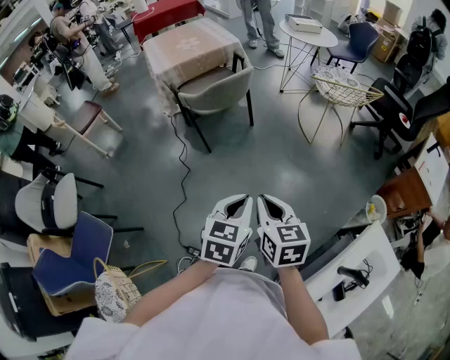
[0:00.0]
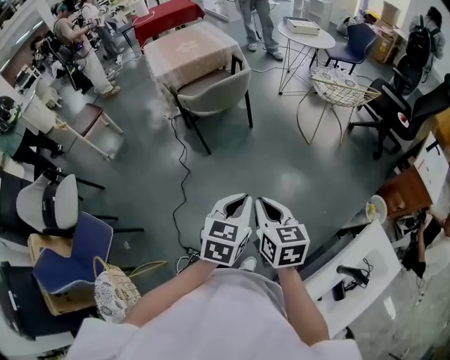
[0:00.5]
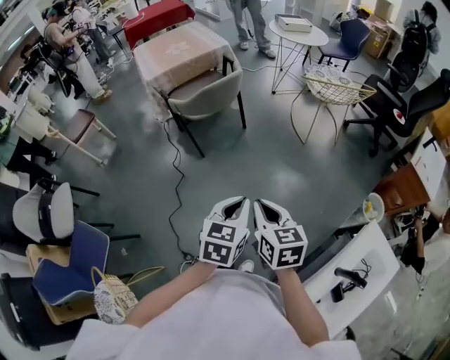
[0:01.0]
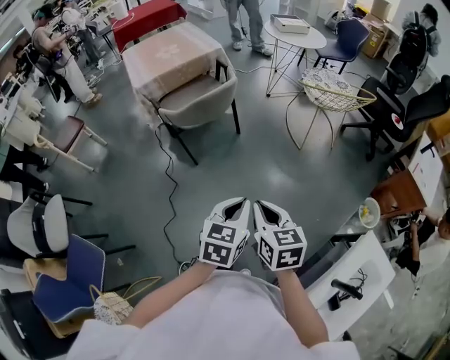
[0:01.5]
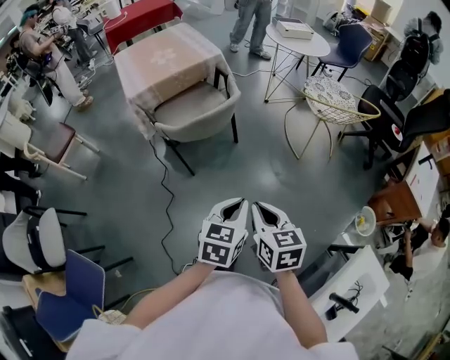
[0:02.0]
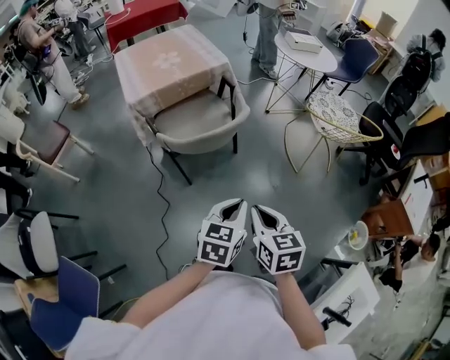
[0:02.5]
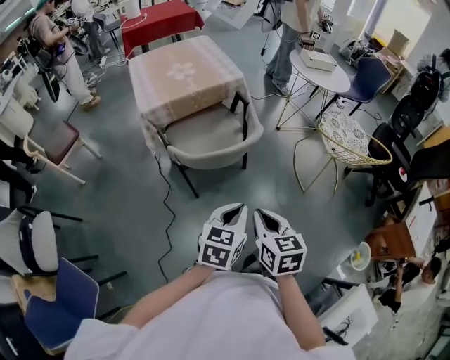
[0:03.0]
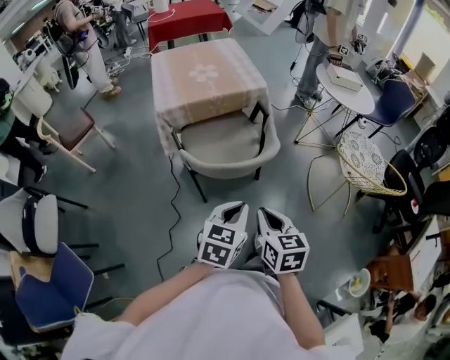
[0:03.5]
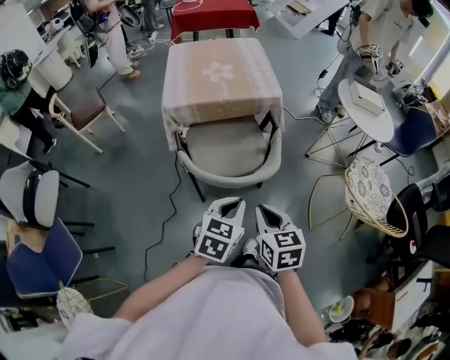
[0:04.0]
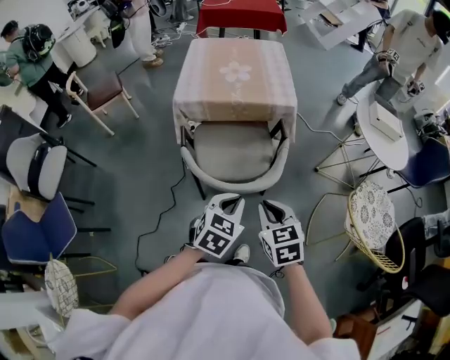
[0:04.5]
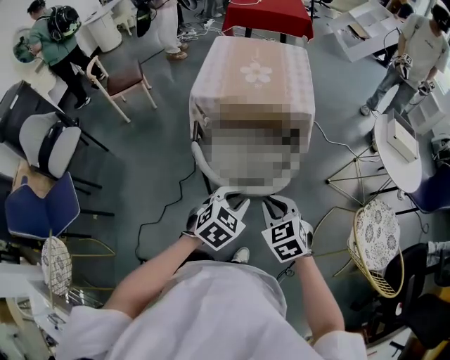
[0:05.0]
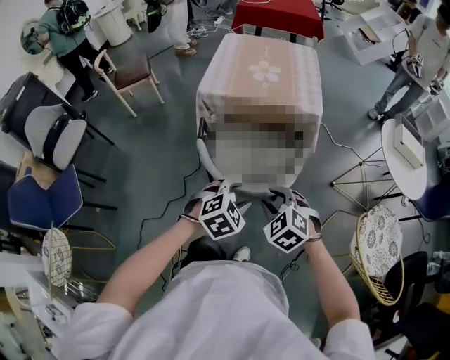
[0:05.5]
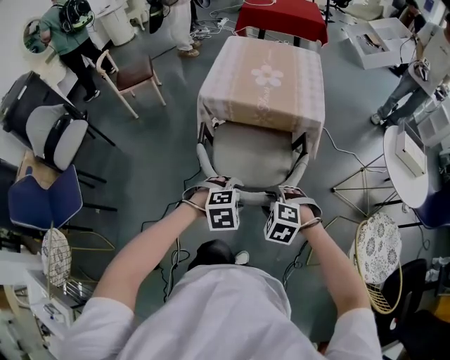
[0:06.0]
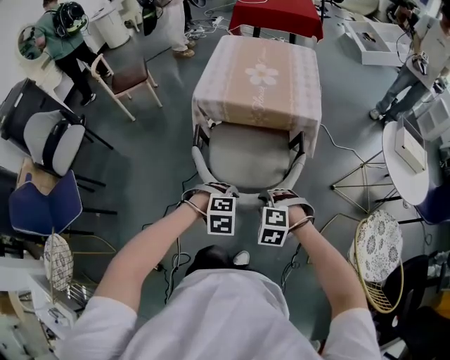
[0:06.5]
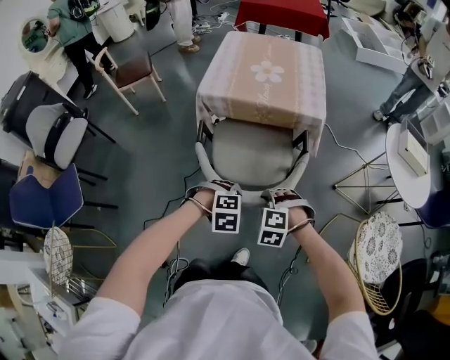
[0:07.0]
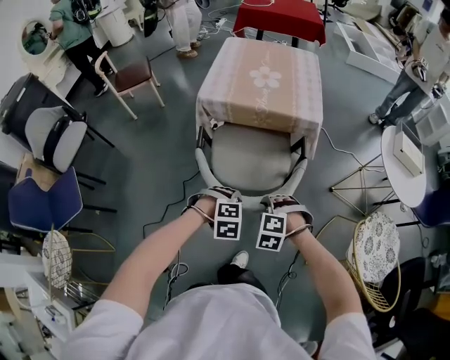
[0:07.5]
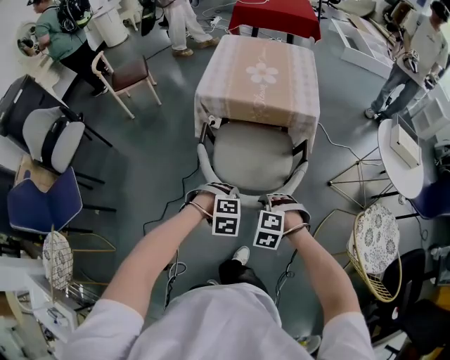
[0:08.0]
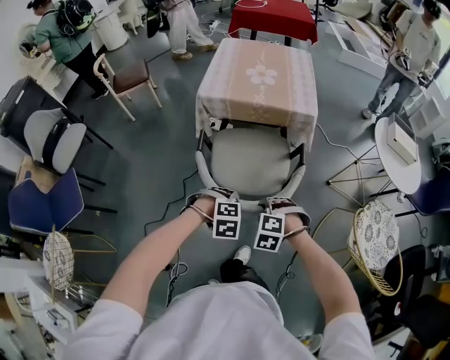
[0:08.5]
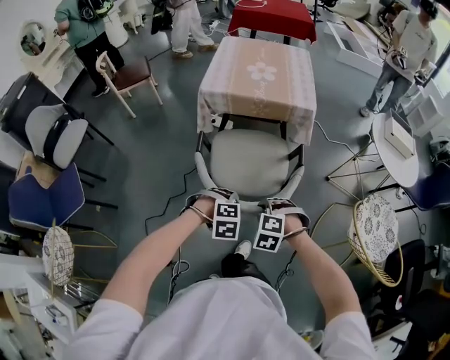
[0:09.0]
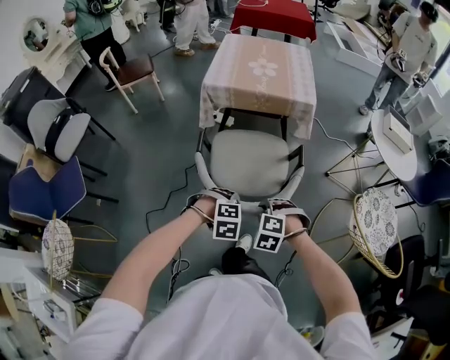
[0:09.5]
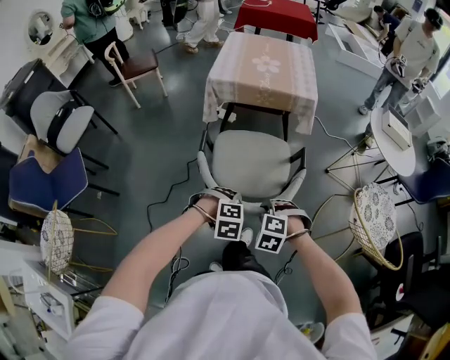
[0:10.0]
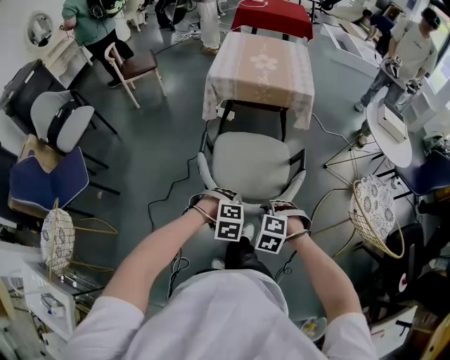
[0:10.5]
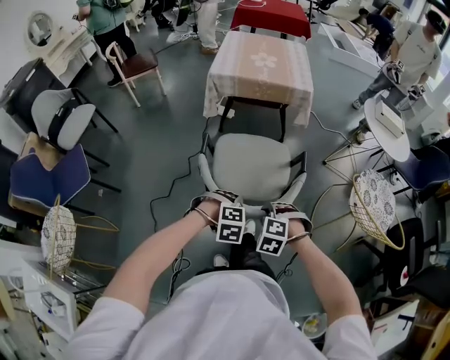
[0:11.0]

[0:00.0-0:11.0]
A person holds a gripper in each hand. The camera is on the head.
0:00.0 to 0:02.0: Both grippers travel together forward, about 20 cm.
0:02.0 to 0:03.5: The right gripper travels forward by roughly 20 cm. Meanwhile the left gripper travels forward and to the left by some 20 cm.
0:03.5 to 0:05.5: The left gripper shifts by some 15 cm, changes its angle by approximately 30 degrees, and opens up; the right gripper shifts by roughly 20 cm, twists roughly 70 degrees counterclockwise, seen from behind, and opens up.
0:05.5 to 0:07.5: The grippers both shift downward by about 10 cm. The right gripper turns by approximately 30 degrees. The left gripper changes its angle by about 30 degrees, and closes.
0:07.5 to 0:09.0: Both grippers move backward, approximately 10 cm.
0:09.0 to 0:11.0: Both grippers travel together backward, approximately 20 cm.

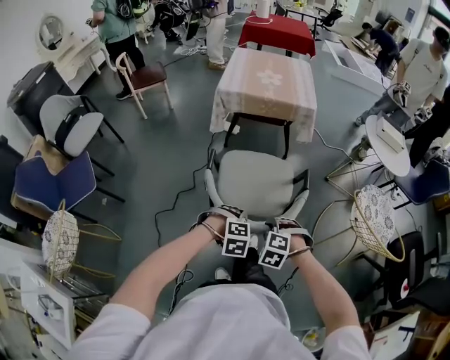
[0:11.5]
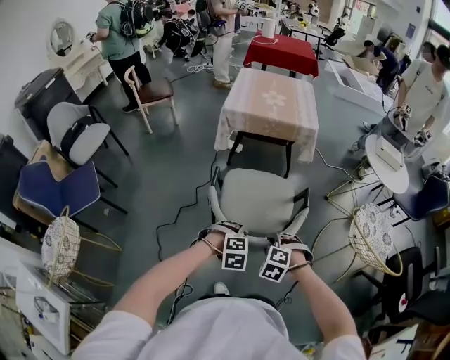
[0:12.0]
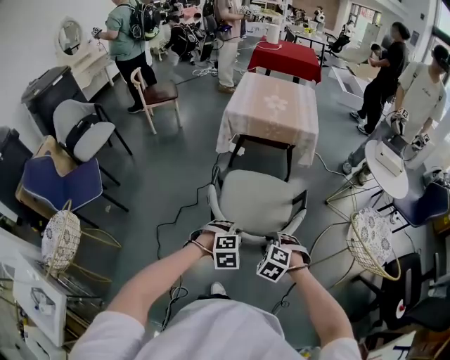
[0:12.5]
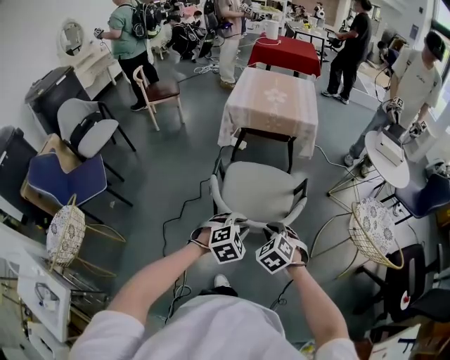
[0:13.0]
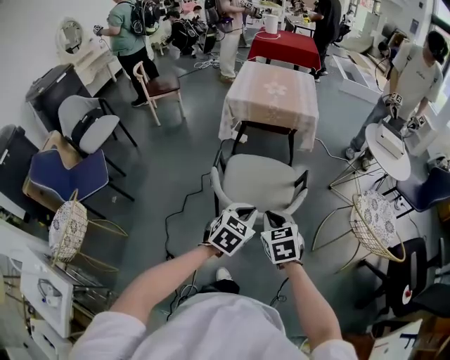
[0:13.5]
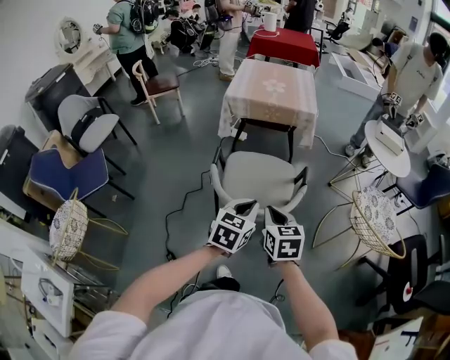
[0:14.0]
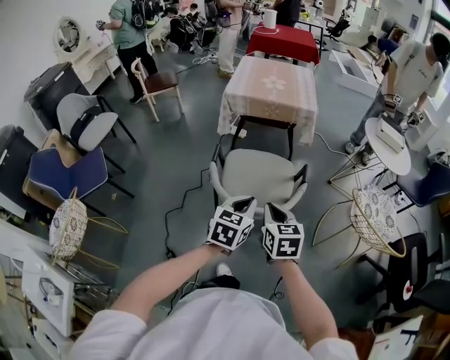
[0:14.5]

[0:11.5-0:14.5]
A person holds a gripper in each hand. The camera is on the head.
0:11.5 to 0:13.0: Both grippers travel together upward, about 10 cm. The right gripper rotates roughly 30 degrees. The left gripper changes its angle by approximately 30 degrees.
0:13.0 to 0:14.5: The two grippers go some 5 cm upward. The right gripper rolls clockwise, seen from behind, by some 50 degrees; the left gripper rotates around the line of its fingers by about 40 degrees, counterclockwise from behind, and closes up.

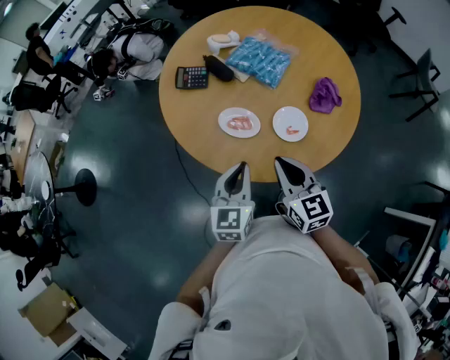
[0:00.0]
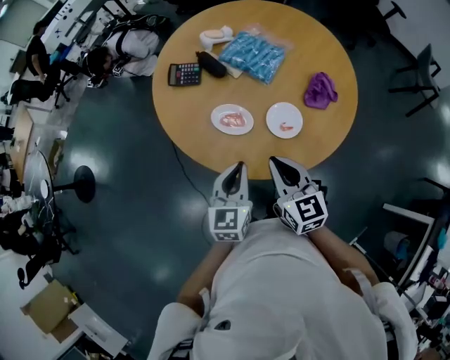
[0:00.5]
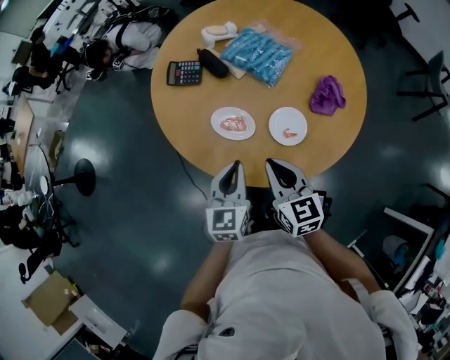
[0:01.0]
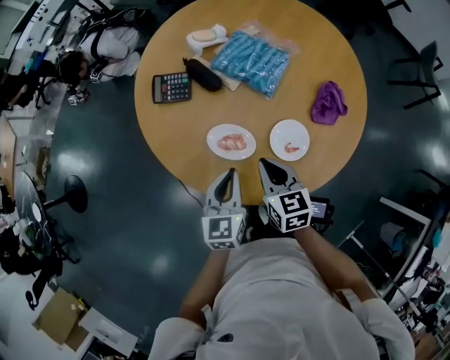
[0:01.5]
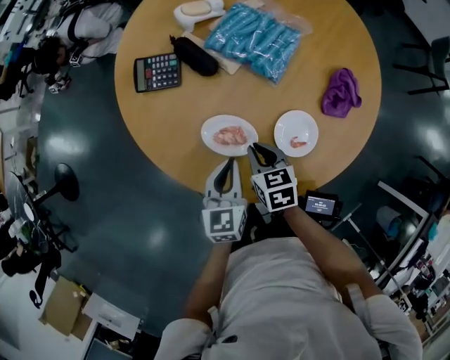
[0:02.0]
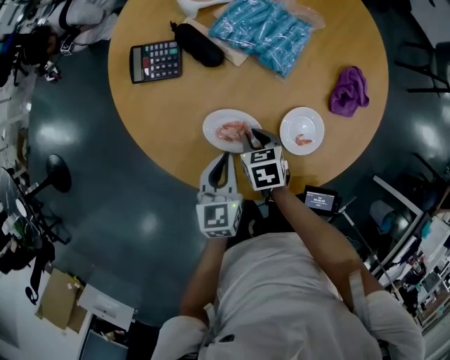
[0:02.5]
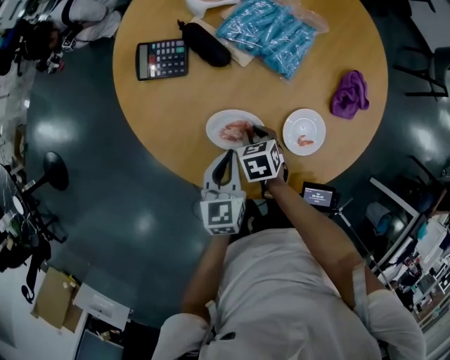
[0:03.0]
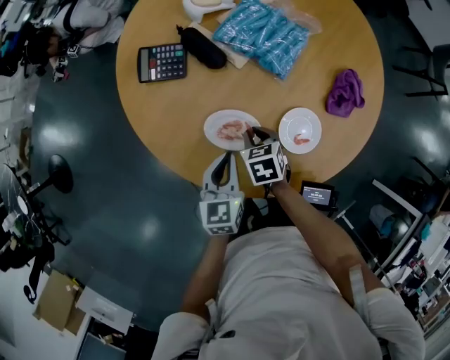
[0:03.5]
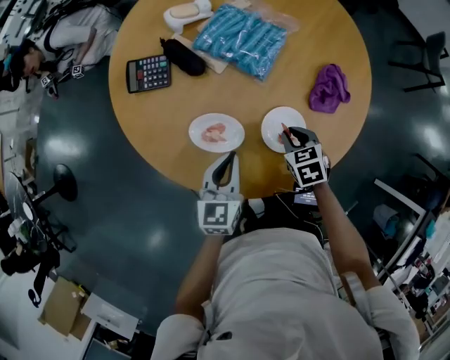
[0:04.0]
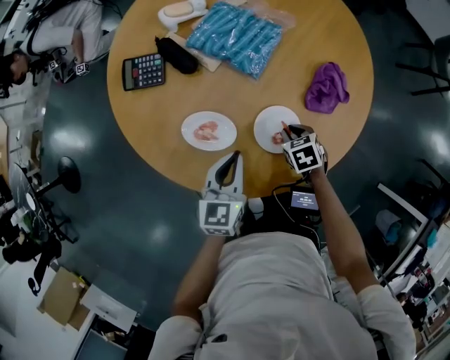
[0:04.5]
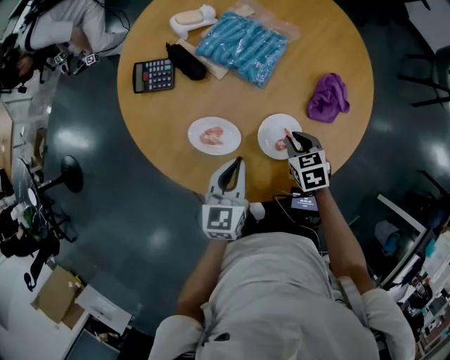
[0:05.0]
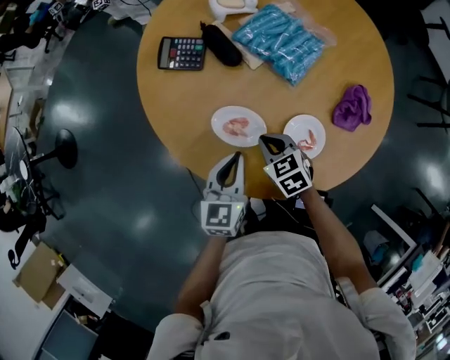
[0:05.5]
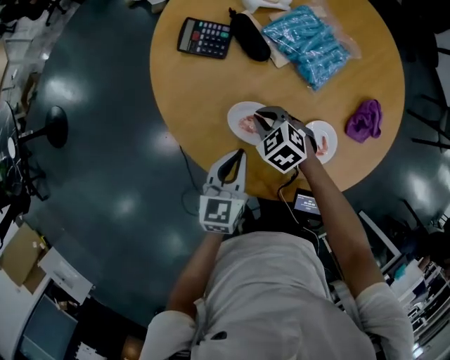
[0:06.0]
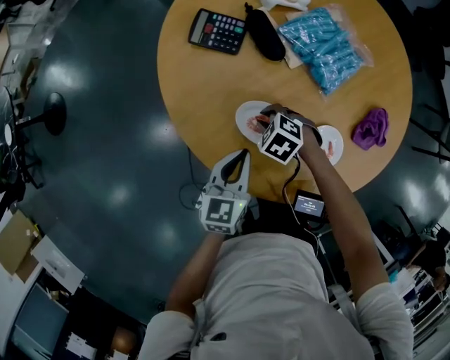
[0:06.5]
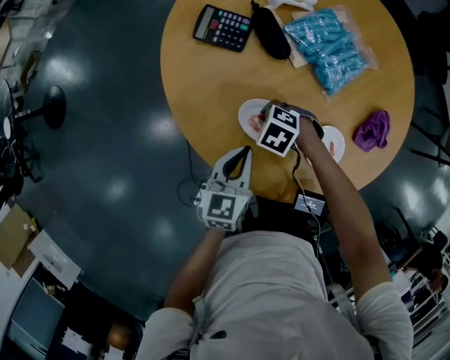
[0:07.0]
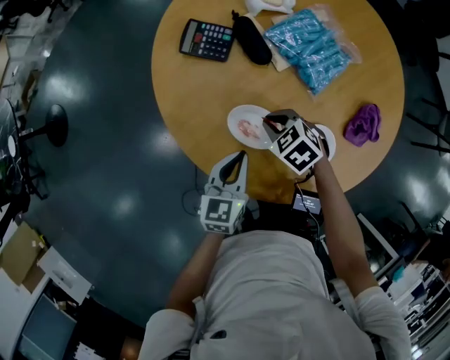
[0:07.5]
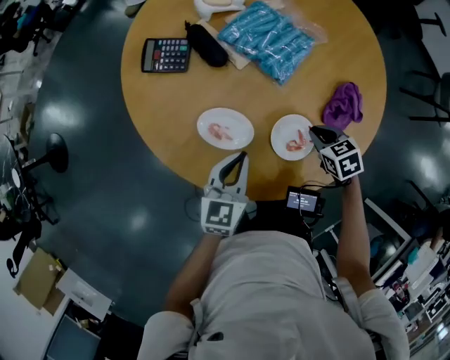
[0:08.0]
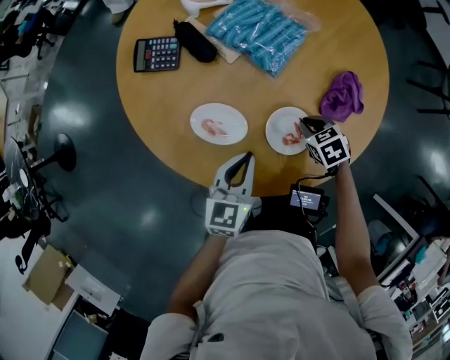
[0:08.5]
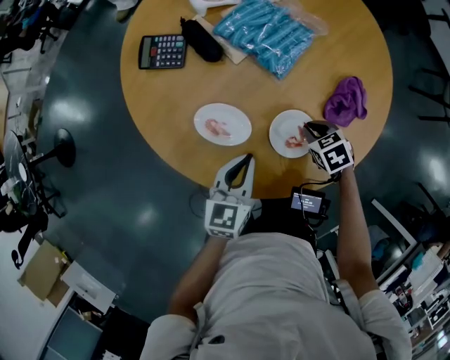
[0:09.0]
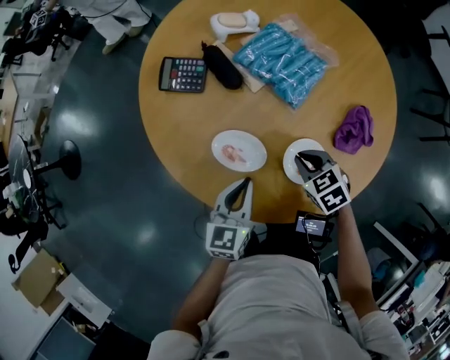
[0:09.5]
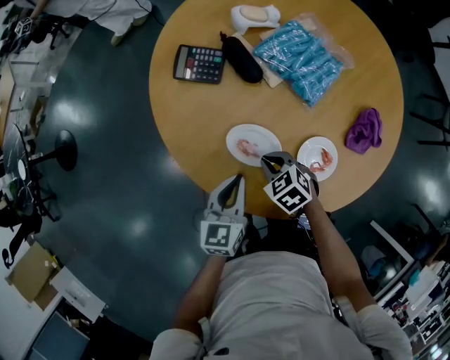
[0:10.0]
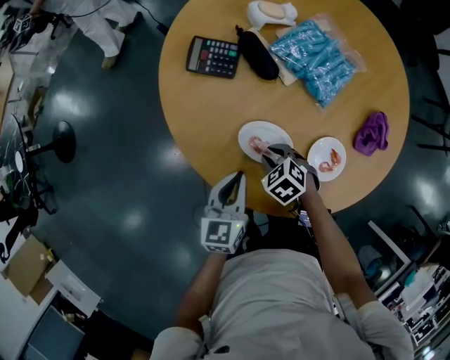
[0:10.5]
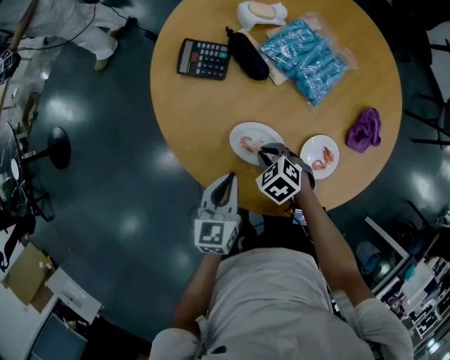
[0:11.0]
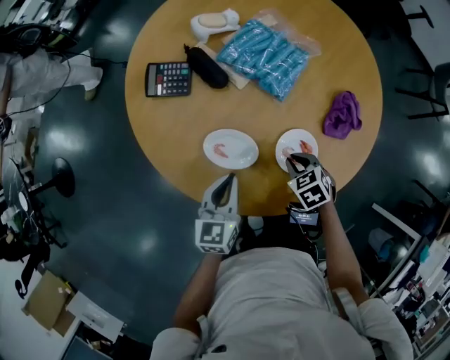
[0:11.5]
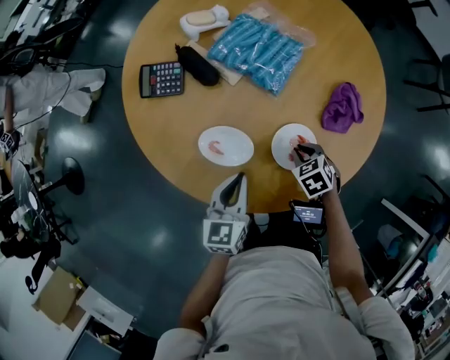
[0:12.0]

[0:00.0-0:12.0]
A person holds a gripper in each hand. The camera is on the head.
0:00.0 to 0:02.0: Both grippers travel together downward and forward, about 25 cm. The right gripper tips its fingers downward by some 30 degrees.
0:02.0 to 0:04.0: The right gripper shifts about 15 cm to the right.
0:04.0 to 0:06.0: The left gripper shifts roughly 10 cm to the left, while the right gripper moves to the left, roughly 20 cm, and swivels approximately 40 degrees.
0:06.0 to 0:08.0: The left gripper changes place by approximately 10 cm, while the right gripper changes place by approximately 25 cm, and changes its angle by some 30 degrees.
0:08.0 to 0:10.0: The left gripper shifts approximately 10 cm to the left, while the right gripper is displaced to the left by some 25 cm, and changes its angle by about 20 degrees.
0:10.0 to 0:12.0: The left gripper heads to the right, covering about 10 cm, while the right gripper heads to the right, covering some 20 cm, and swivels approximately 20 degrees.
